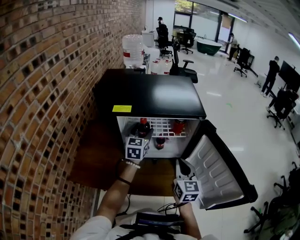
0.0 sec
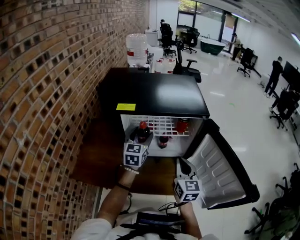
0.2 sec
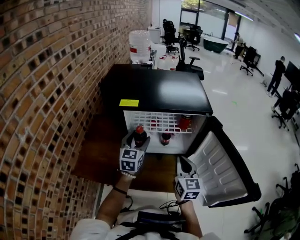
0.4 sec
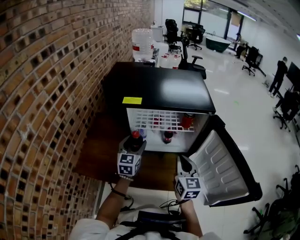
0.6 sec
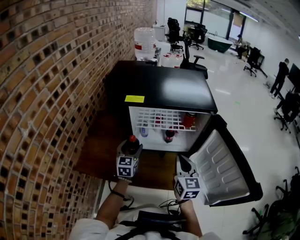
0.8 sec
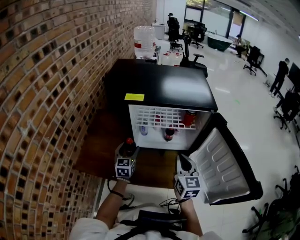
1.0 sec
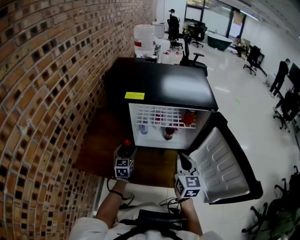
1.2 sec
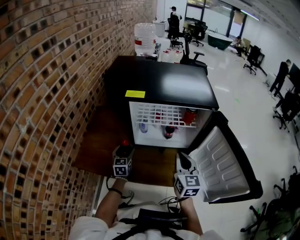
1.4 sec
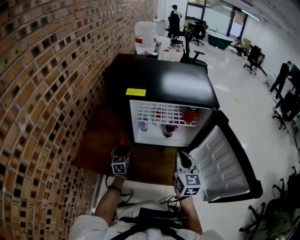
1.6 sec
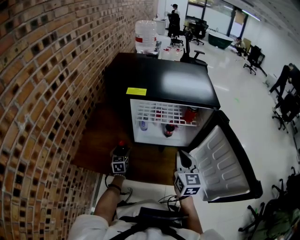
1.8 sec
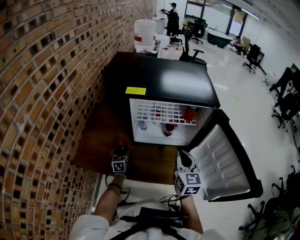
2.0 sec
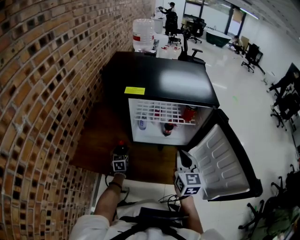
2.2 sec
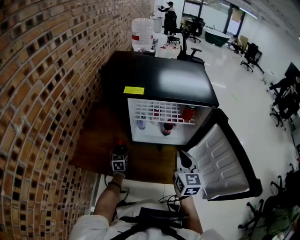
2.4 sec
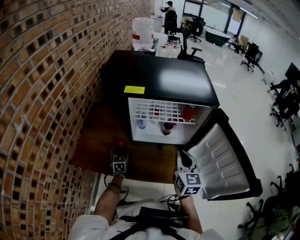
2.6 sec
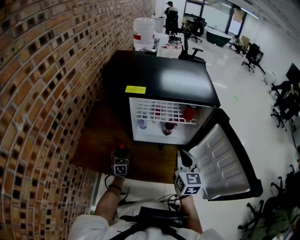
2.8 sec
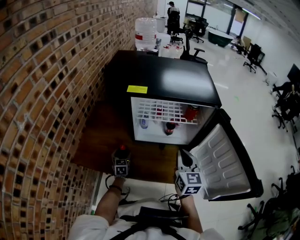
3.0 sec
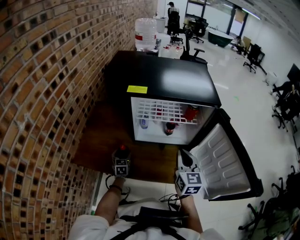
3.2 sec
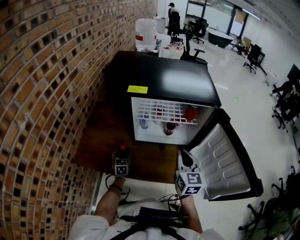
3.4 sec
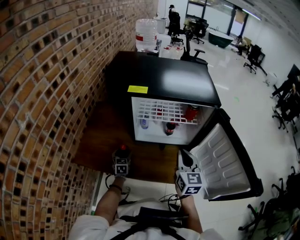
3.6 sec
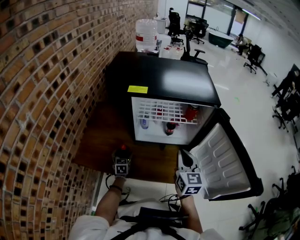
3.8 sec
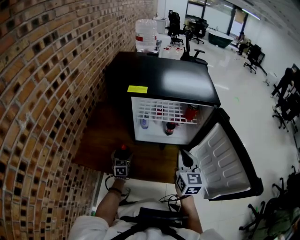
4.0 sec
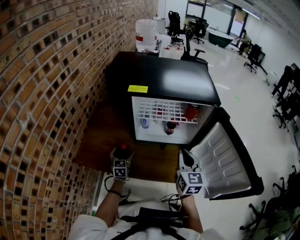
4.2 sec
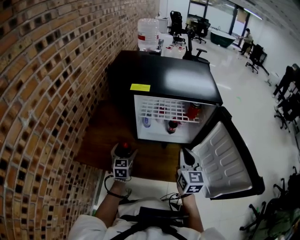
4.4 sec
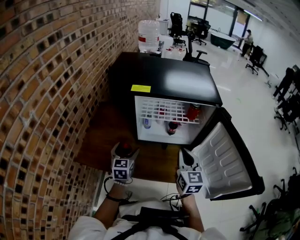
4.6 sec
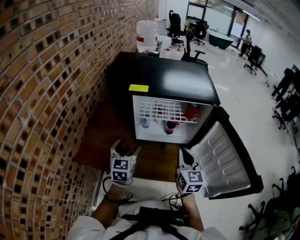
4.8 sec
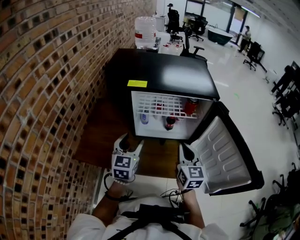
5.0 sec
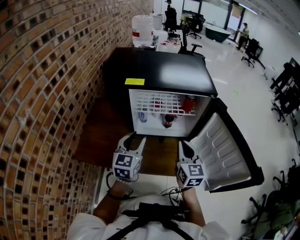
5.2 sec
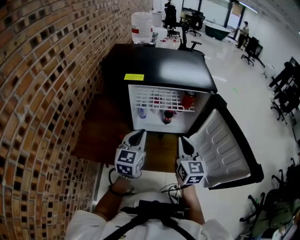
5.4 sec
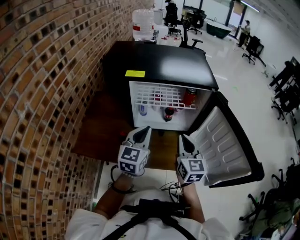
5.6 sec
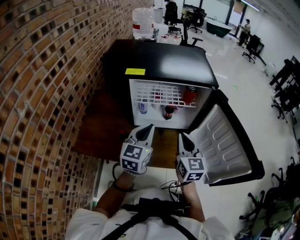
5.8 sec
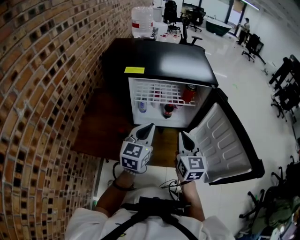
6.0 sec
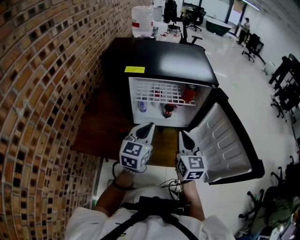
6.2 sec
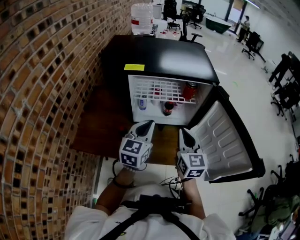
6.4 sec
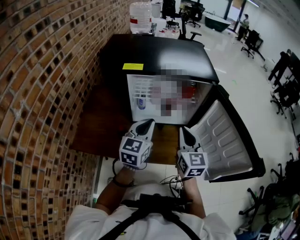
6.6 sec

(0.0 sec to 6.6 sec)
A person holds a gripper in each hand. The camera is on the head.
0.0 sec - 1.6 sec: The left gripper travels downward, to the left and backward by some 30 cm, and swivels approximately 20 degrees.
1.6 sec - 3.2 sec: The left gripper moves downward, about 5 cm.
3.2 sec - 5.0 sec: The left gripper moves upward, about 25 cm, and rotates approximately 20 degrees.
5.0 sec - 6.6 sec: The left gripper moves to the right, some 10 cm, and closes its fingers.

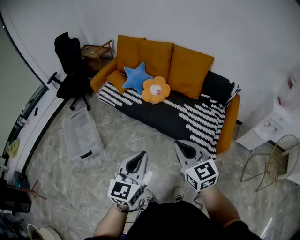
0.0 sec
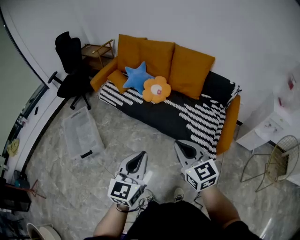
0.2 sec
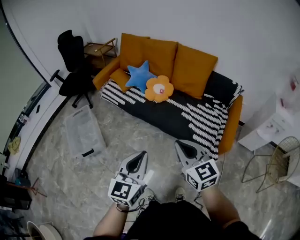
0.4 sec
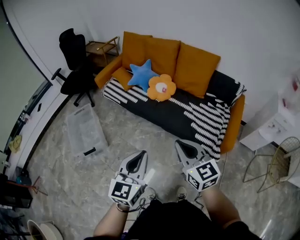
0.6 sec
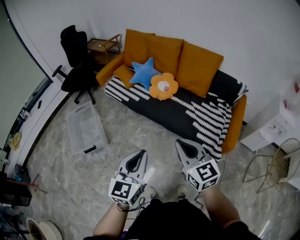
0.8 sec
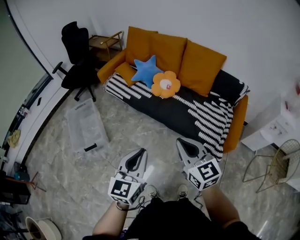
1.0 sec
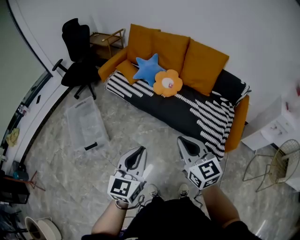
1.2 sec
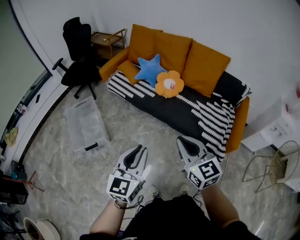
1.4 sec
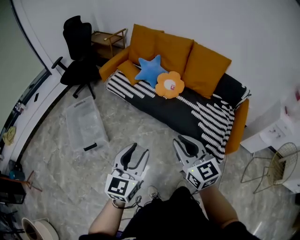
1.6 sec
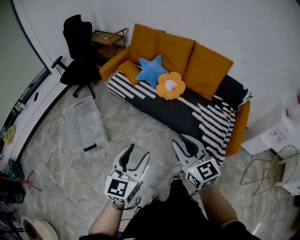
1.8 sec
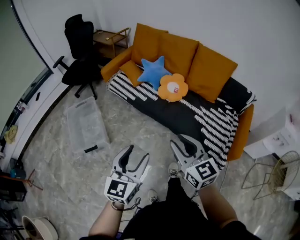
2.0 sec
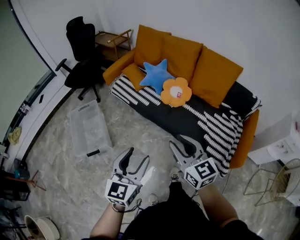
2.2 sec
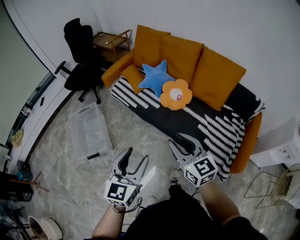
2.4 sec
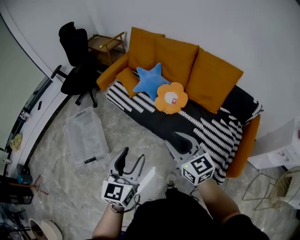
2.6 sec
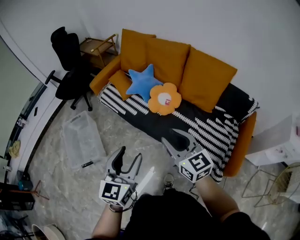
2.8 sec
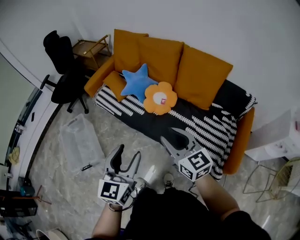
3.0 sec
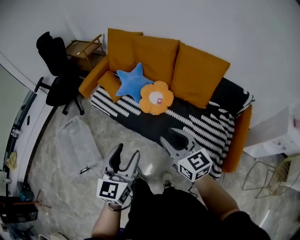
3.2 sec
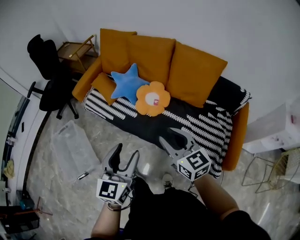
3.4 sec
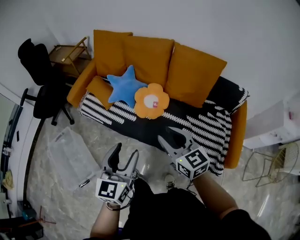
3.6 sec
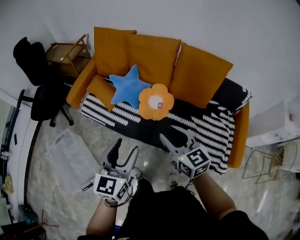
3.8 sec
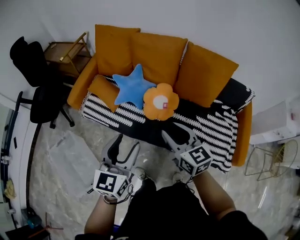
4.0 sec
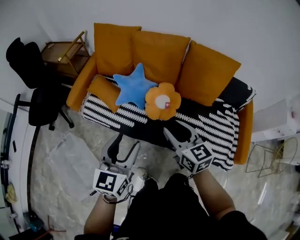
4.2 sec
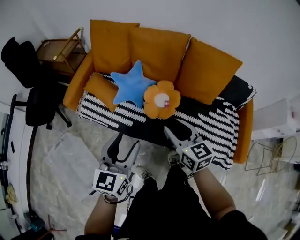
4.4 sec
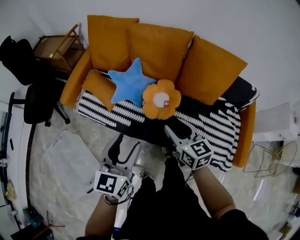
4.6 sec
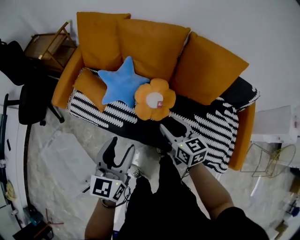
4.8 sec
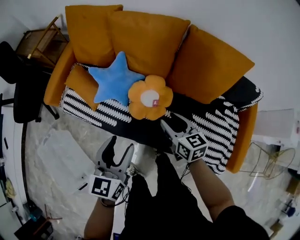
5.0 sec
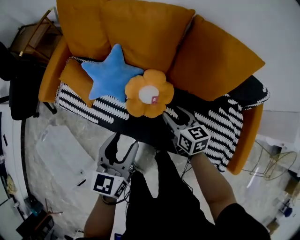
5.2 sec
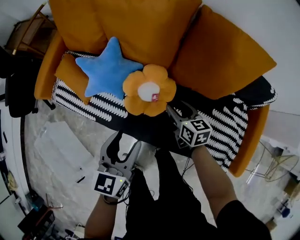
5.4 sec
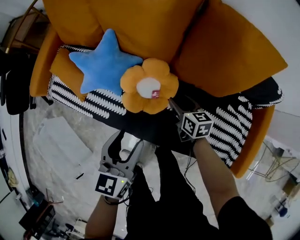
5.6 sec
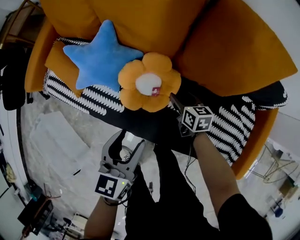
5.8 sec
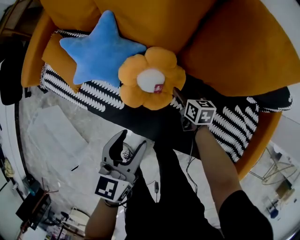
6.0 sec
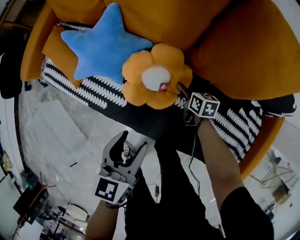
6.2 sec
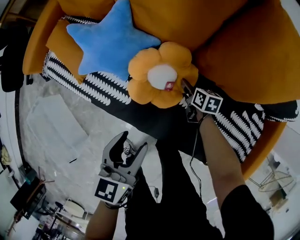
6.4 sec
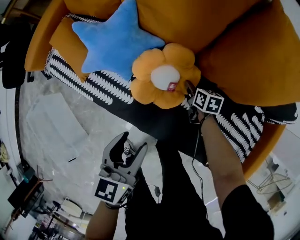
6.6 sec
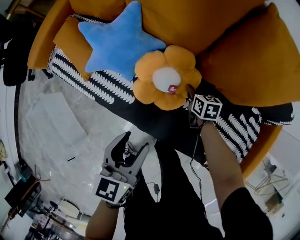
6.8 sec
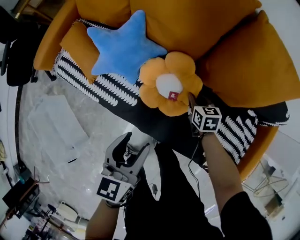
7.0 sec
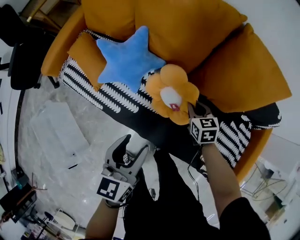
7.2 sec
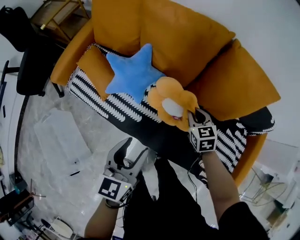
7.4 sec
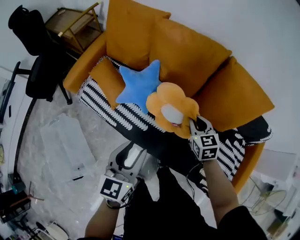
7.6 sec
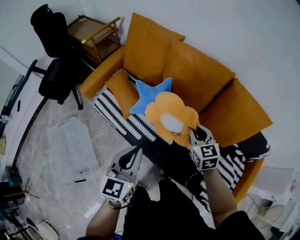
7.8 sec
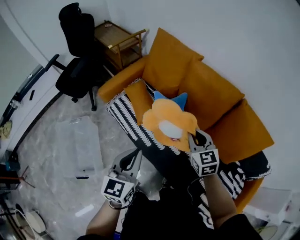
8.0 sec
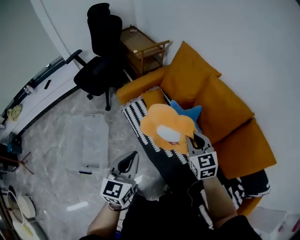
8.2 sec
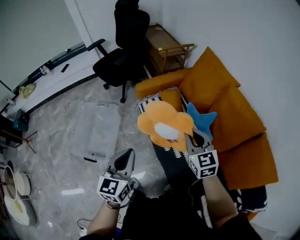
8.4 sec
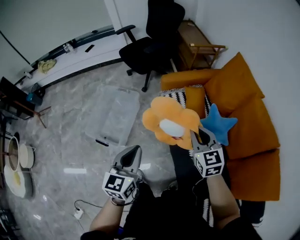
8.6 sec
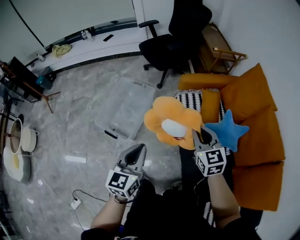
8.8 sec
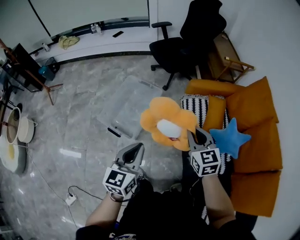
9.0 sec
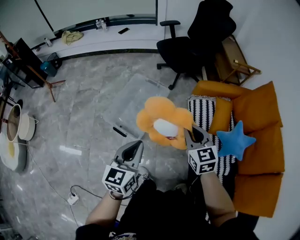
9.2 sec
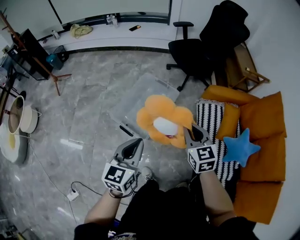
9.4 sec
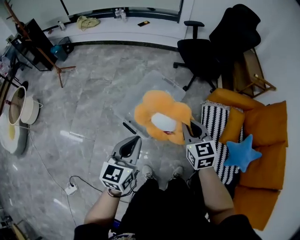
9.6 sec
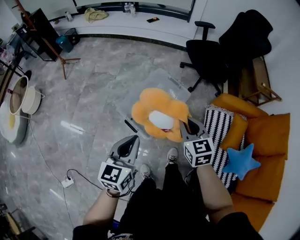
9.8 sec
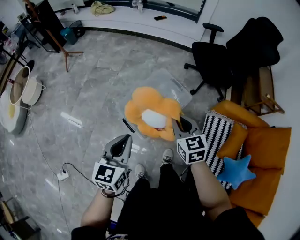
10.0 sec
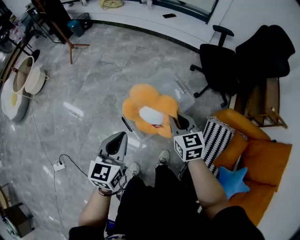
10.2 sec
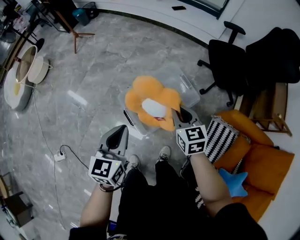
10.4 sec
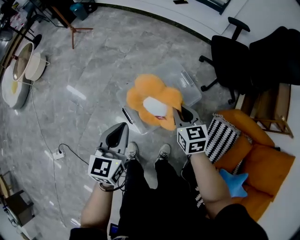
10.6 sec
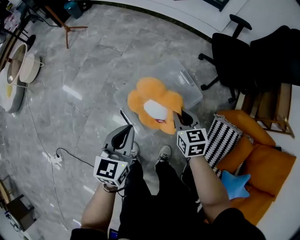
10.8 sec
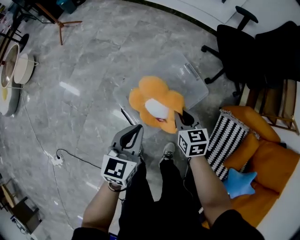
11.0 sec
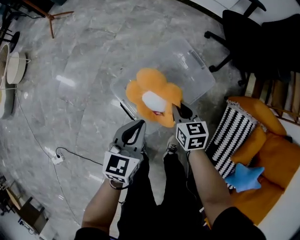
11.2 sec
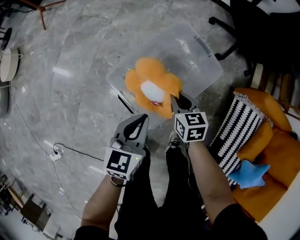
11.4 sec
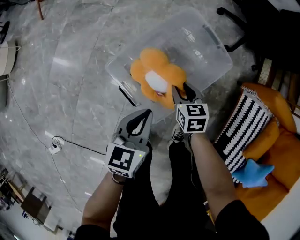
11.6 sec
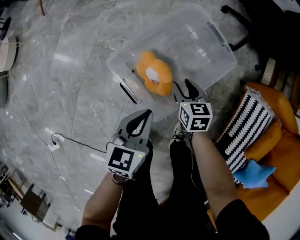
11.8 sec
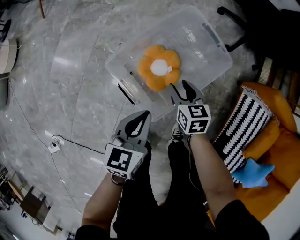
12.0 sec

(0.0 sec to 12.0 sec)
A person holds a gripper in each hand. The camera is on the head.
0.0 sec - 1.6 sec: The two grippers go about 15 cm to the left. The left gripper opens its fingers.
1.6 sec - 3.0 sec: Both grippers travel together forward and to the right, about 25 cm.
3.0 sec - 4.4 sec: The two grippers go about 25 cm forward and to the left. The right gripper swivels about 20 degrees.
4.4 sec - 6.0 sec: The right gripper shifts some 50 cm downward, forward and to the right, and turns by about 30 degrees; the left gripper travels downward, to the right and forward by roughly 35 cm, and turns by roughly 20 degrees.
6.0 sec - 7.6 sec: The right gripper is displaced upward by about 30 cm, turns by some 30 degrees, and closes. Meanwhile the left gripper heads upward and to the left, covering approximately 20 cm.
7.6 sec - 9.0 sec: The two grippers travel together, roughly 50 cm. The right gripper rotates roughly 60 degrees, while the left gripper swivels approximately 60 degrees, and closes up.
9.0 sec - 10.4 sec: The right gripper shifts by approximately 40 cm, and changes its angle by approximately 30 degrees, while the left gripper changes place by about 25 cm, and swivels roughly 30 degrees.
10.4 sec - 12.0 sec: Both grippers travel together downward, approximately 35 cm. The right gripper rotates some 20 degrees. The left gripper turns by approximately 20 degrees.

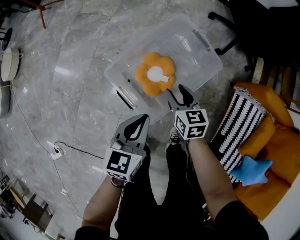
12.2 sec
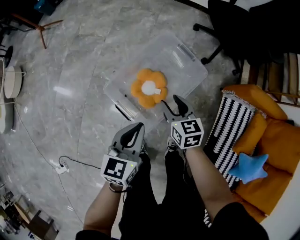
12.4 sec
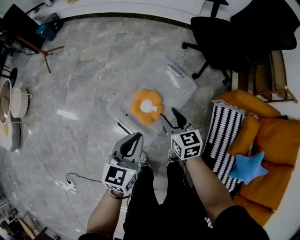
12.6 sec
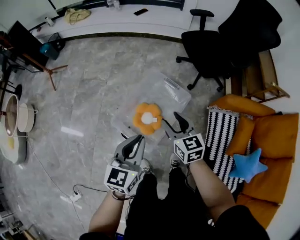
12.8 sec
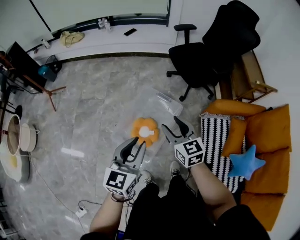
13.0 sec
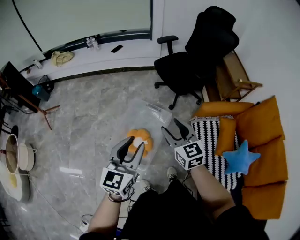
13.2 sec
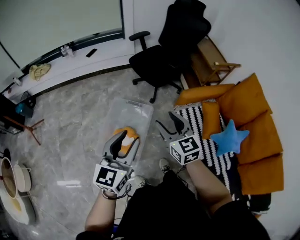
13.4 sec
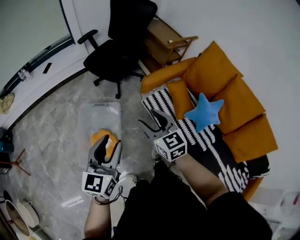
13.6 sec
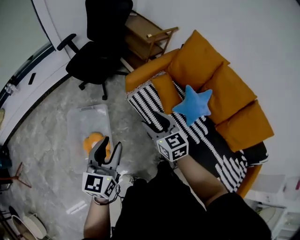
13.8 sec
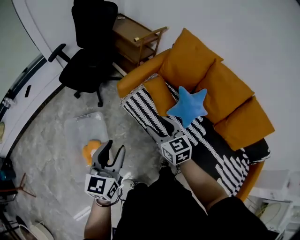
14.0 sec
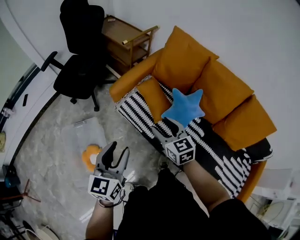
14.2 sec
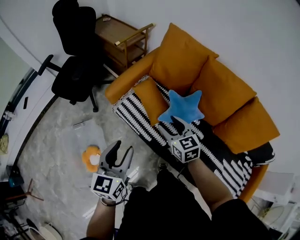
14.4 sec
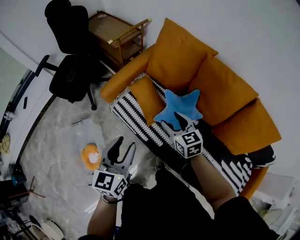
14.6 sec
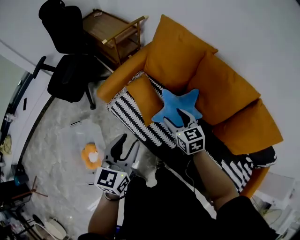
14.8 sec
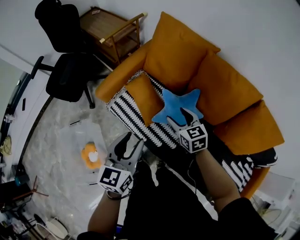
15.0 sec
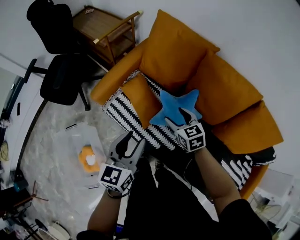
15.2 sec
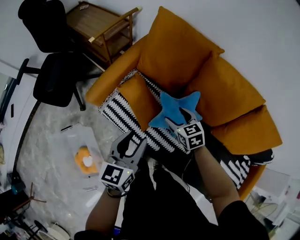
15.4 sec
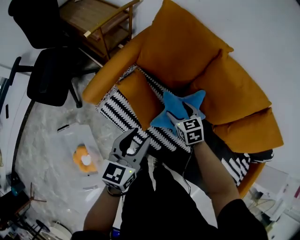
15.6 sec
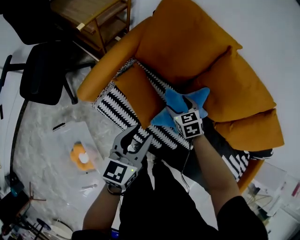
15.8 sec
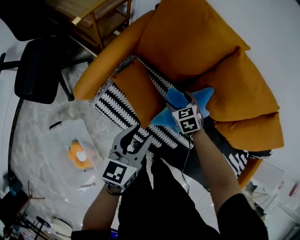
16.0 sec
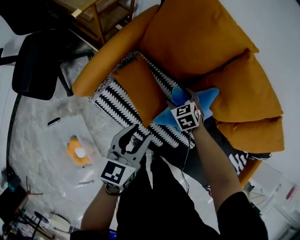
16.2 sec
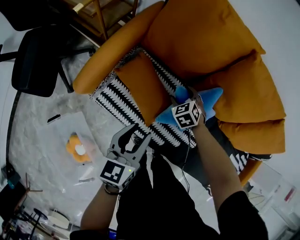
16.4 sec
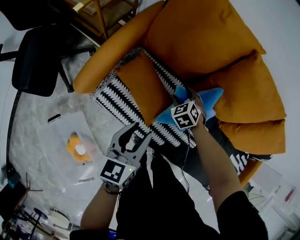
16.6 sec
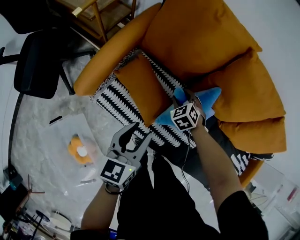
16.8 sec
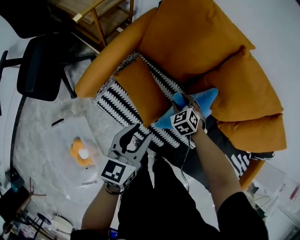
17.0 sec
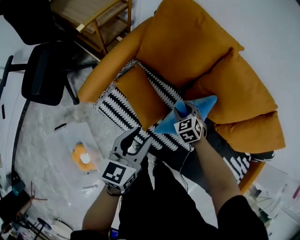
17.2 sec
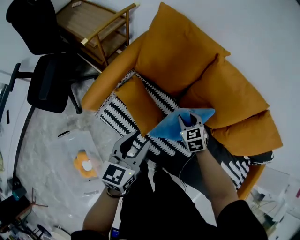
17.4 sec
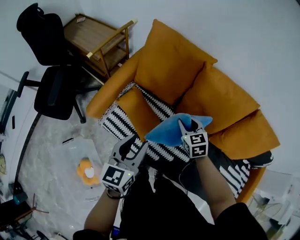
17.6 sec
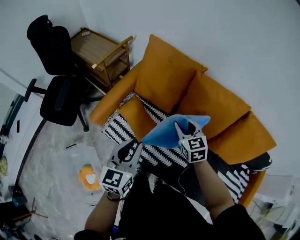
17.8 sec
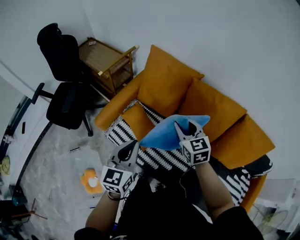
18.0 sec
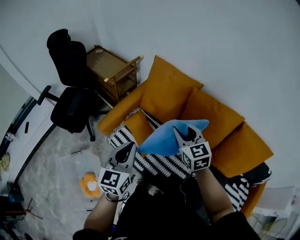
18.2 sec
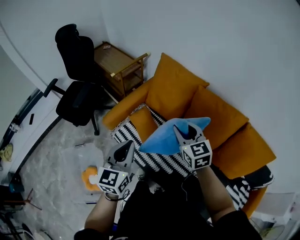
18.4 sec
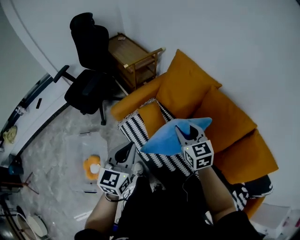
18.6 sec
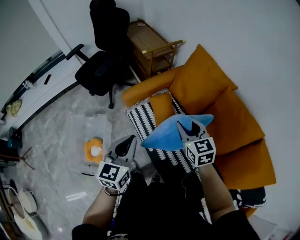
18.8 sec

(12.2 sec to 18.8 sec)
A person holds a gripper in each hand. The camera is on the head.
12.2 sec - 13.8 sec: Both grippers move upward, about 35 cm. The left gripper rotates some 50 degrees, and opens its fingers. Meanwhile the right gripper turns by about 50 degrees.
13.8 sec - 15.4 sec: The pair of grippers is taken to the right and forward, about 40 cm. The left gripper changes its angle by roughly 20 degrees. Meanwhile the right gripper heads downward, covering some 20 cm, and turns by some 30 degrees.
15.4 sec - 17.2 sec: The two grippers go some 10 cm downward and forward. The right gripper turns by some 30 degrees.
17.2 sec - 18.8 sec: The right gripper is displaced upward by some 30 cm, and tilts its fingers about 30 degrees upward. Meanwhile the left gripper shifts approximately 15 cm upward, turns by some 30 degrees, and closes its fingers.
